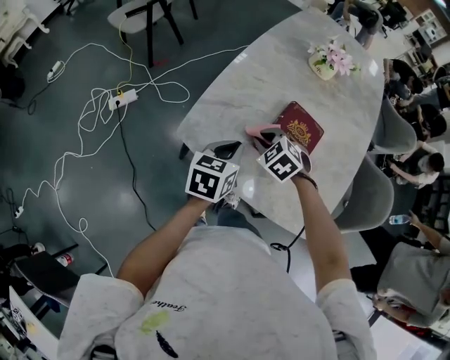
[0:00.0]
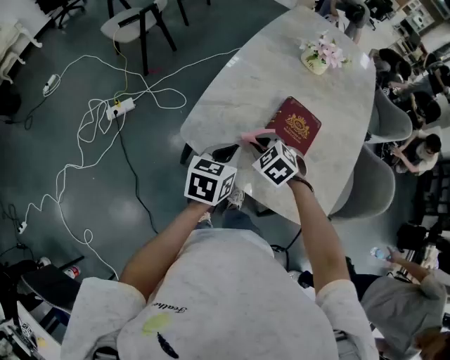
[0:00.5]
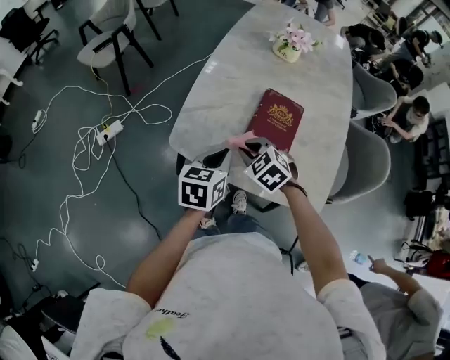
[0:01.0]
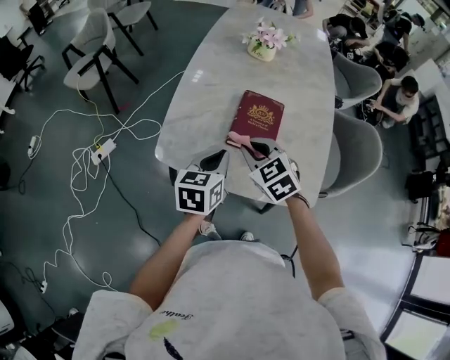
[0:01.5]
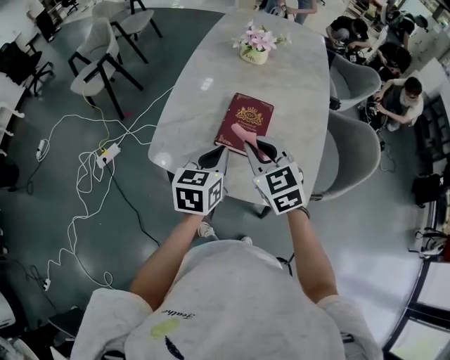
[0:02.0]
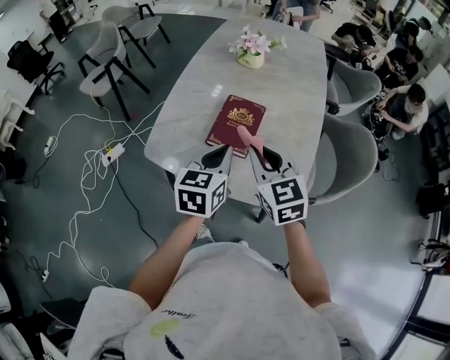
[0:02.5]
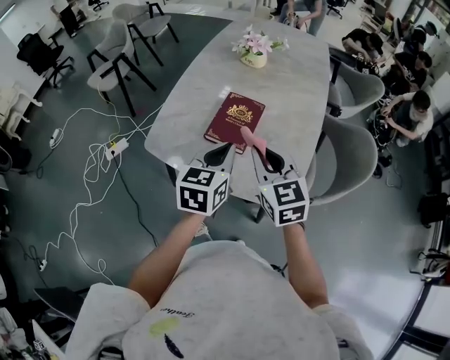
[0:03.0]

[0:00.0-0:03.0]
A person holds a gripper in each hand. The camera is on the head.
0:00.0 to 0:01.5: The right gripper moves upward and backward, approximately 10 cm, and changes its angle by approximately 30 degrees; the left gripper moves roughly 5 cm.
0:01.5 to 0:03.0: The right gripper shifts approximately 20 cm to the right, upward and backward, and turns by about 30 degrees. The left gripper travels to the right and upward by approximately 15 cm.

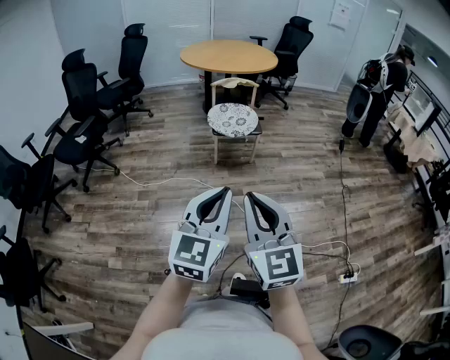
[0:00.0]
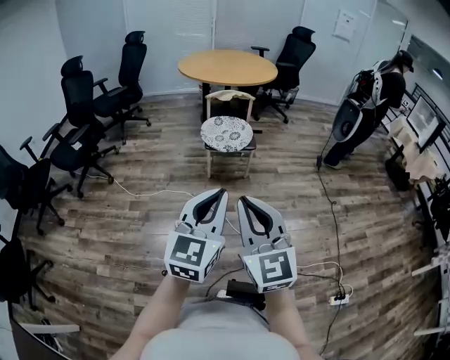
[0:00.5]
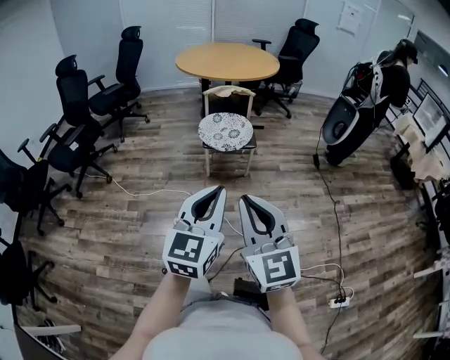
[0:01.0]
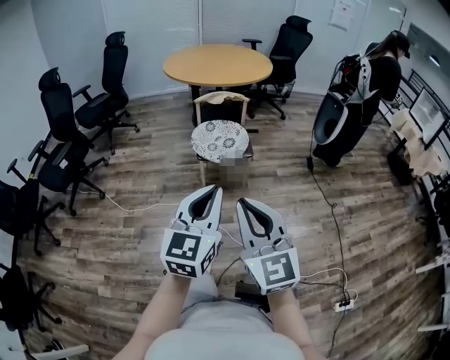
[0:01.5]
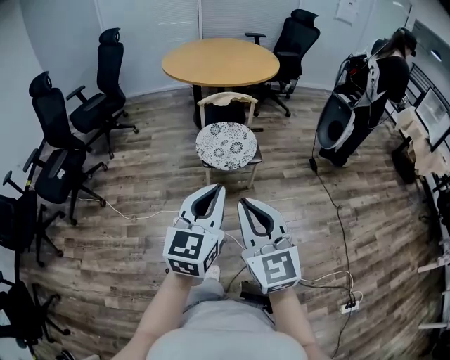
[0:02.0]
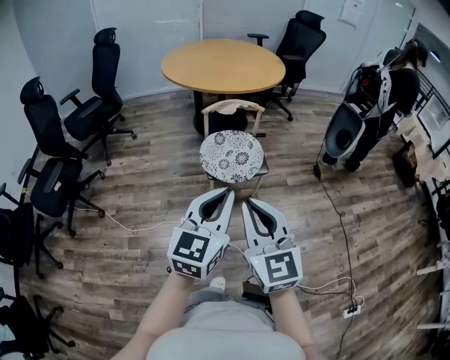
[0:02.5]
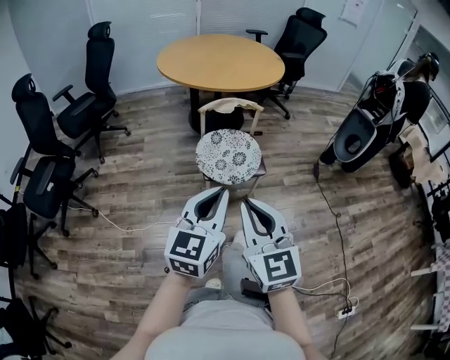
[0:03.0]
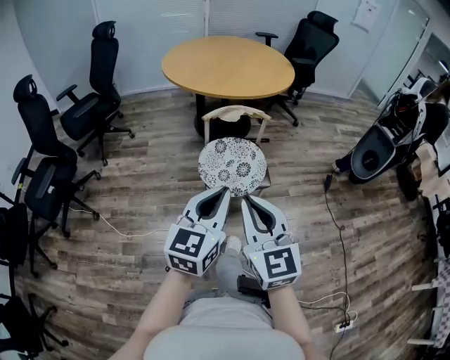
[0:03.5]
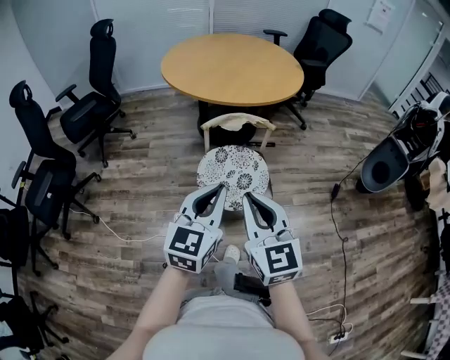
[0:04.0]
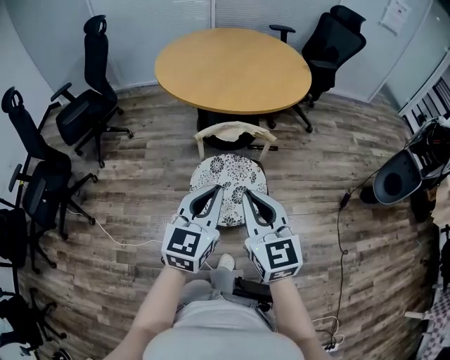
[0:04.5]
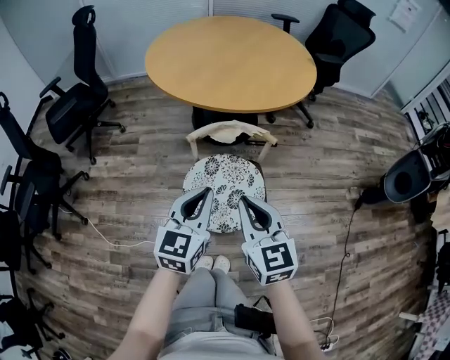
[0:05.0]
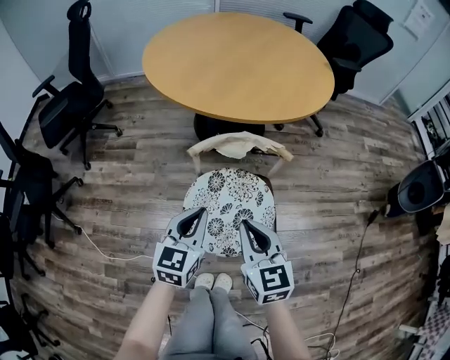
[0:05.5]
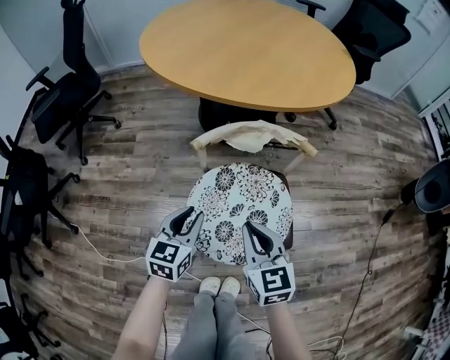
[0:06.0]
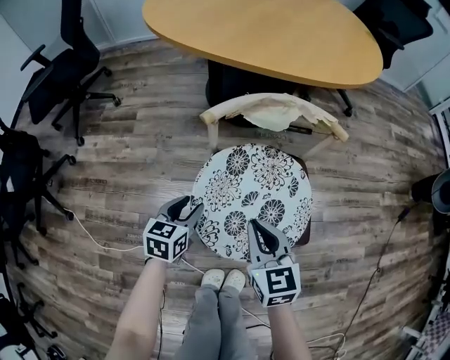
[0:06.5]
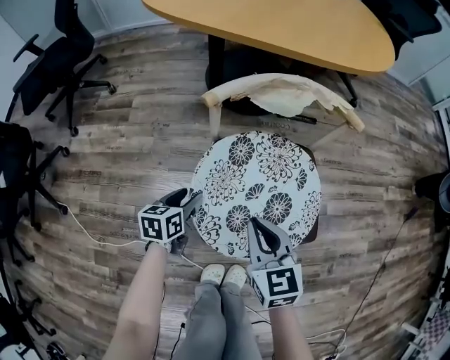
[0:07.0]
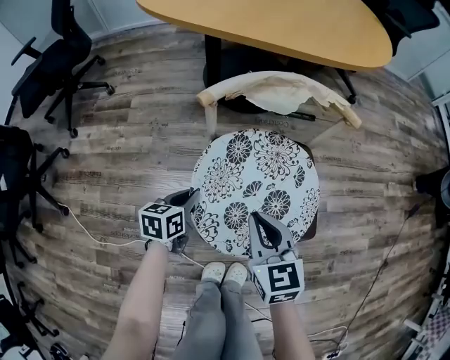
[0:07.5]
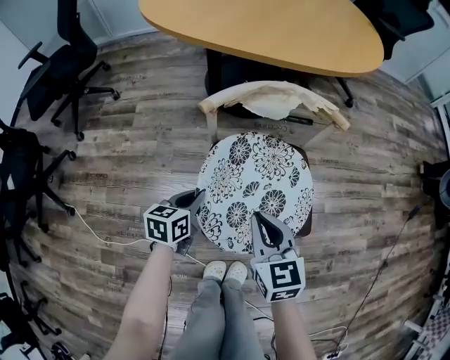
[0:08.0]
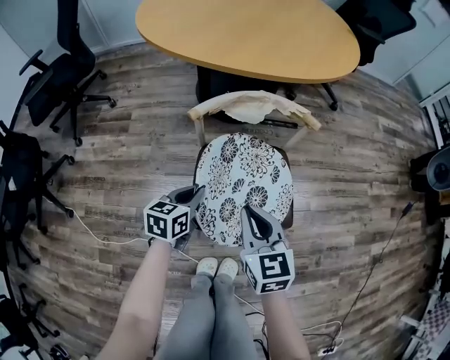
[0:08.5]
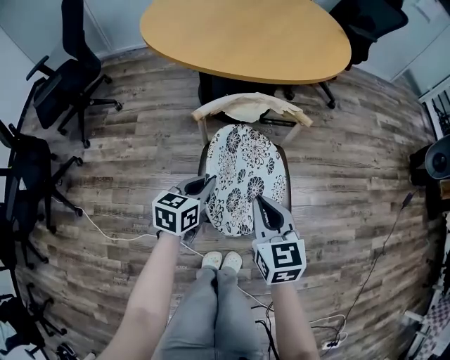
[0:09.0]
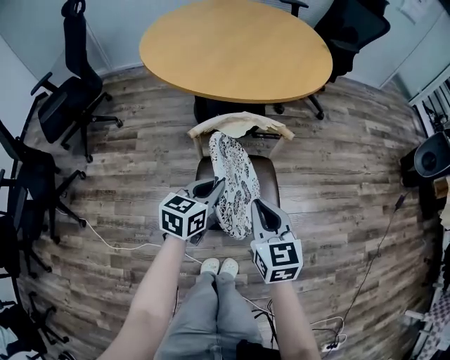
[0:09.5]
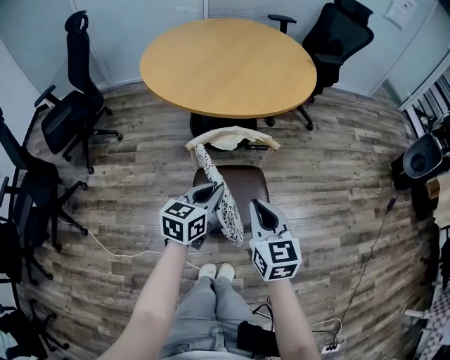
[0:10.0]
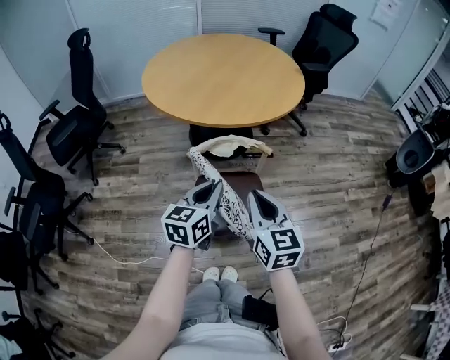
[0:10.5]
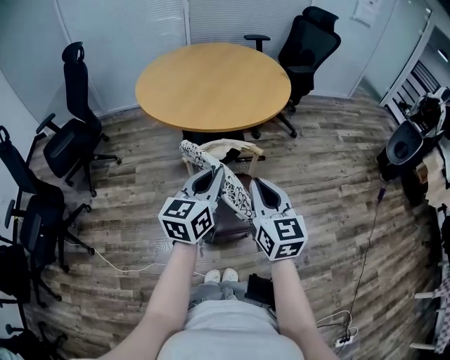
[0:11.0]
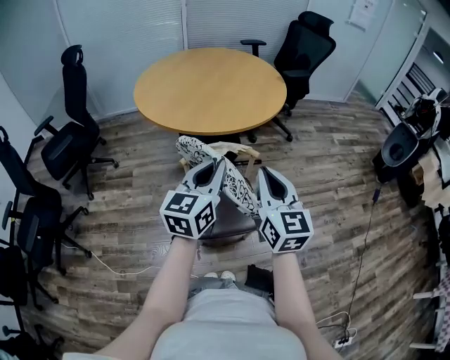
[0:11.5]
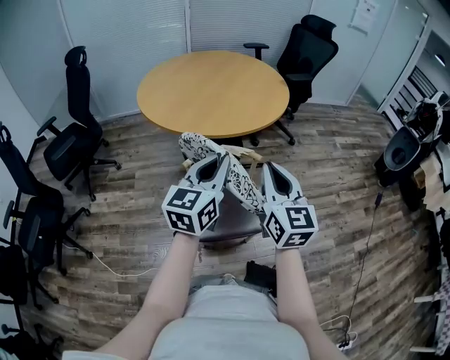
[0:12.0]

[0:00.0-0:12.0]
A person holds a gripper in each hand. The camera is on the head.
0:00.0 to 0:02.0: The grippers both shift forward by some 30 cm.
0:02.0 to 0:04.0: The two grippers go roughly 25 cm forward.
0:04.0 to 0:06.0: The two grippers go roughly 35 cm downward and forward. The right gripper changes its angle by about 20 degrees, while the left gripper swivels approximately 20 degrees.
0:06.0 to 0:08.0: The left gripper goes roughly 15 cm downward, rotates roughly 20 degrees, and opens, then closes once more. The right gripper is displaced downward by about 5 cm.
0:08.0 to 0:10.0: The right gripper shifts about 20 cm upward. Meanwhile the left gripper travels upward and to the right by about 30 cm, and rotates about 20 degrees.
0:10.0 to 0:12.0: Both grippers travel together upward, roughly 20 cm. The right gripper turns by approximately 20 degrees. The left gripper swivels approximately 20 degrees.

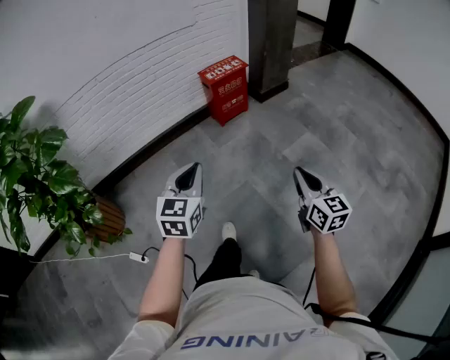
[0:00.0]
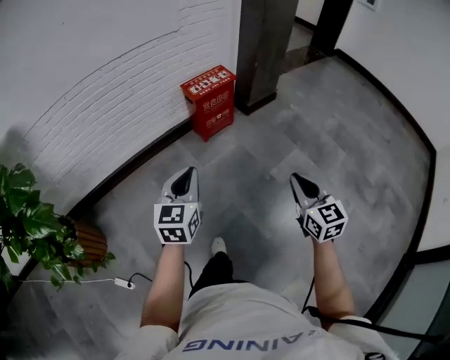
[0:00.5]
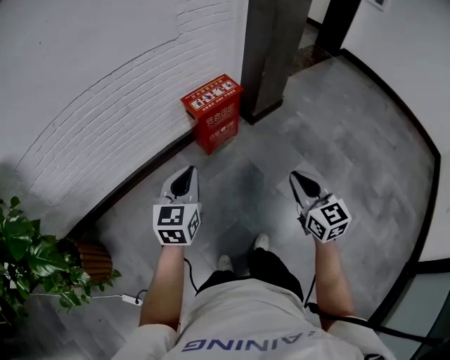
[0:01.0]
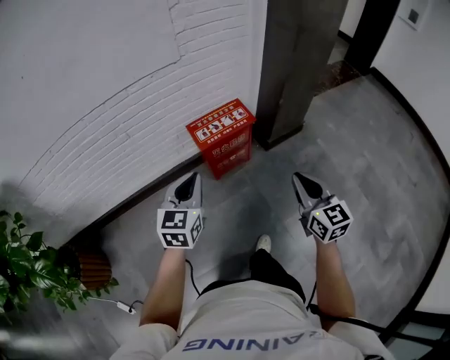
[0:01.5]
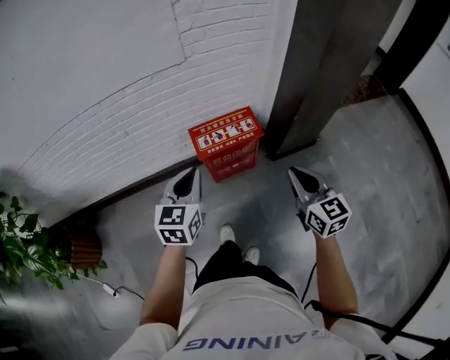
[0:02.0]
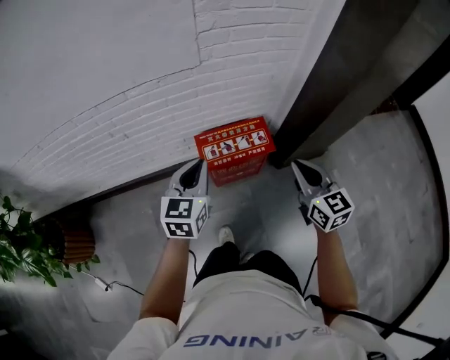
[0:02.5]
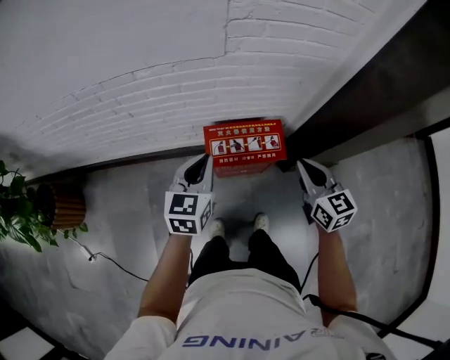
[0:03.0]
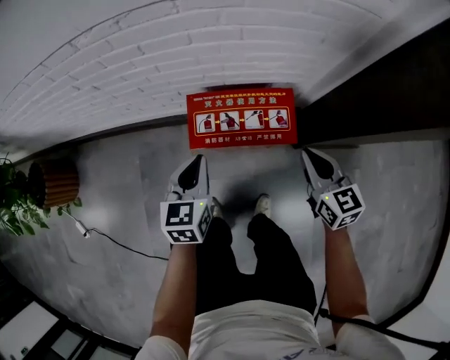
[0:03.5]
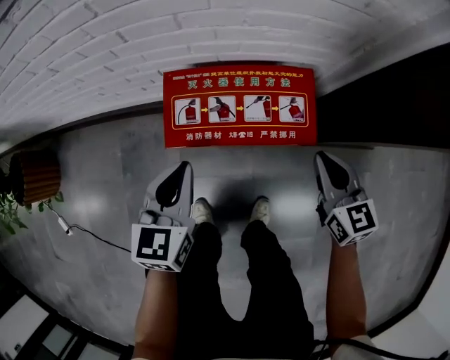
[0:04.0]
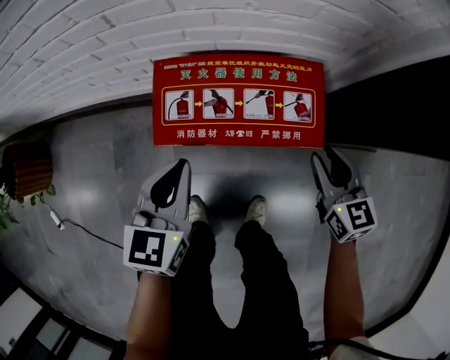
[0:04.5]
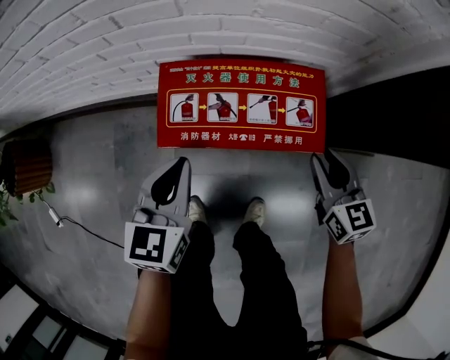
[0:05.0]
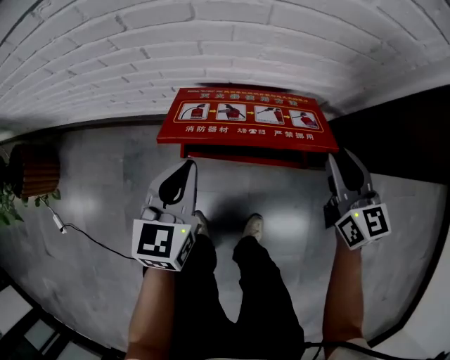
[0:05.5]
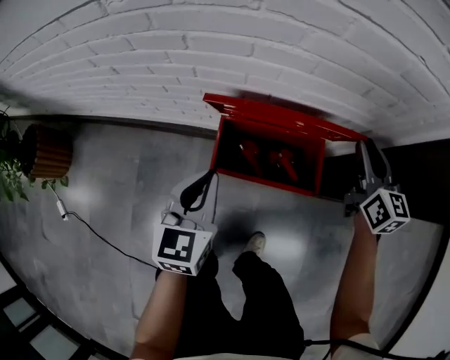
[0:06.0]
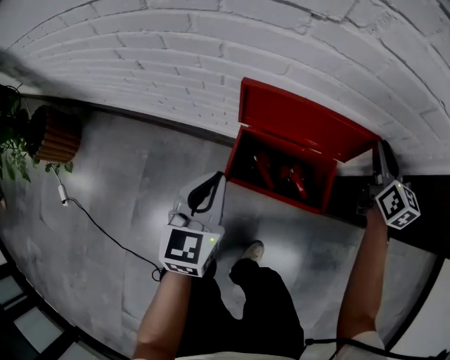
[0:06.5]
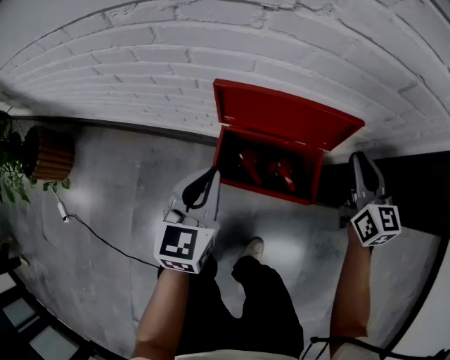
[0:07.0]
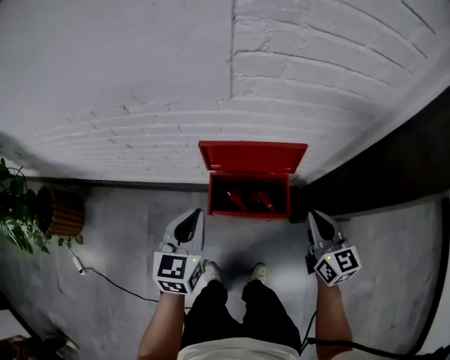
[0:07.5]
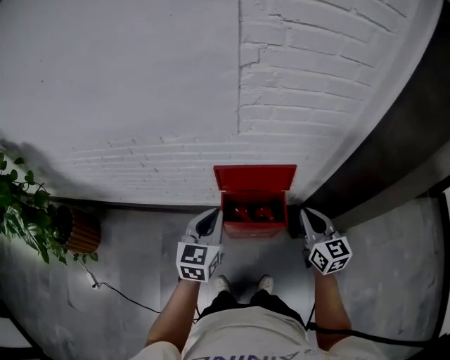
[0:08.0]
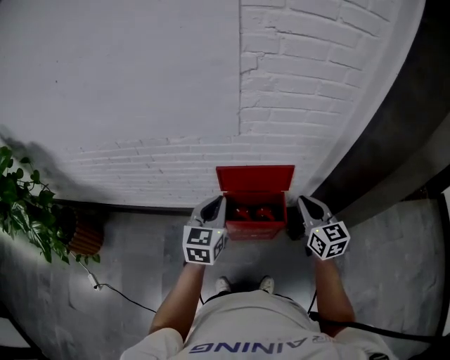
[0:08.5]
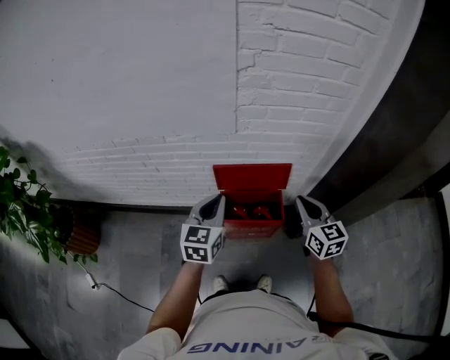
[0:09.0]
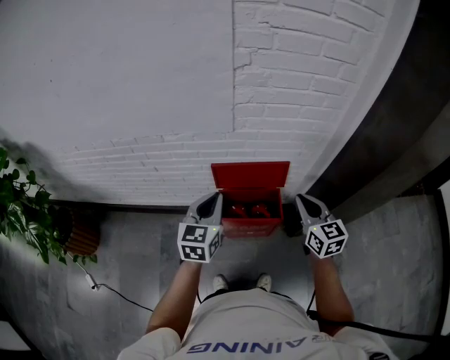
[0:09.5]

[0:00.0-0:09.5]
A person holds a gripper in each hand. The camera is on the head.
0:00.0 to 0:02.0: Both grippers are carried forward, about 70 cm. The right gripper turns by approximately 20 degrees.
0:02.0 to 0:04.0: Both grippers move downward and forward, approximately 40 cm. The left gripper turns by about 20 degrees.
0:04.0 to 0:05.5: The right gripper heads forward and upward, covering approximately 5 cm, and opens.
0:05.5 to 0:07.5: The grippers both shift upward by roughly 20 cm. The right gripper goes forward and returns, some 20 cm each way, and closes up.
0:07.5 to 0:09.5: The two grippers go some 15 cm upward.

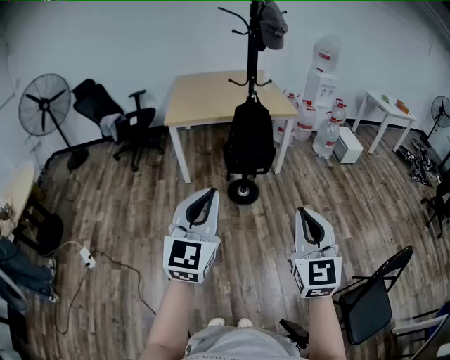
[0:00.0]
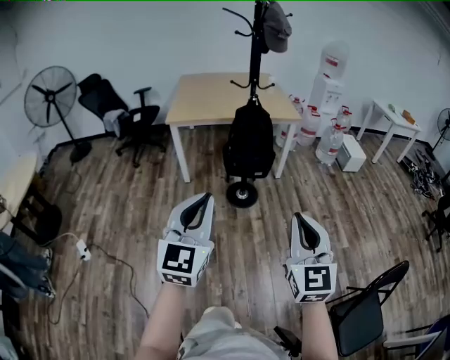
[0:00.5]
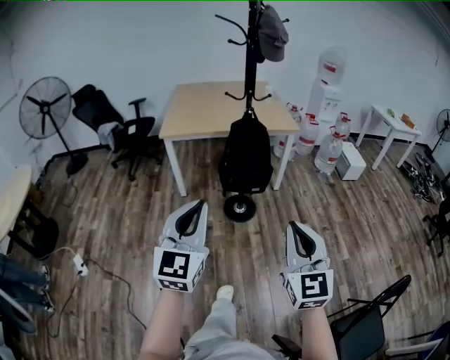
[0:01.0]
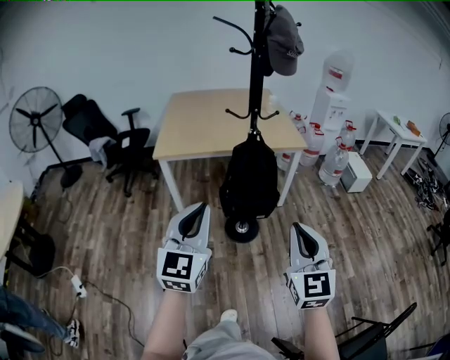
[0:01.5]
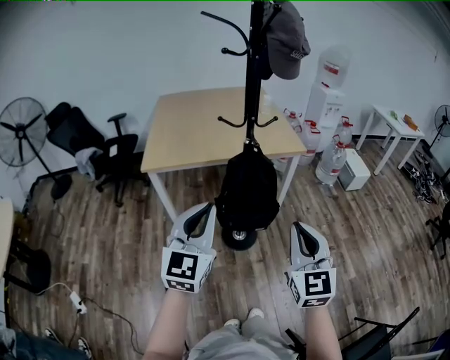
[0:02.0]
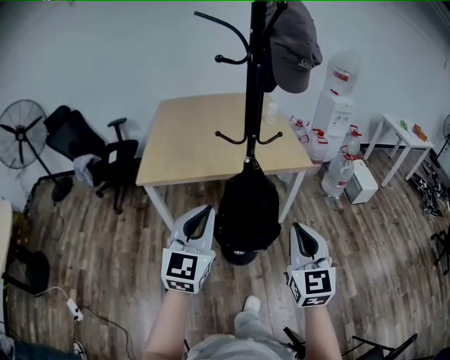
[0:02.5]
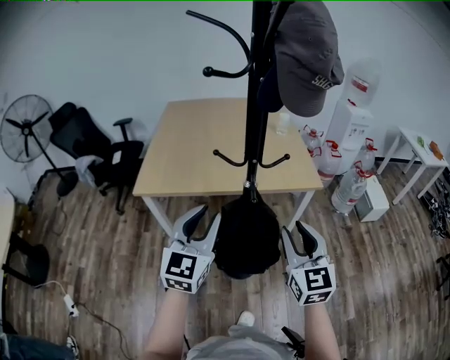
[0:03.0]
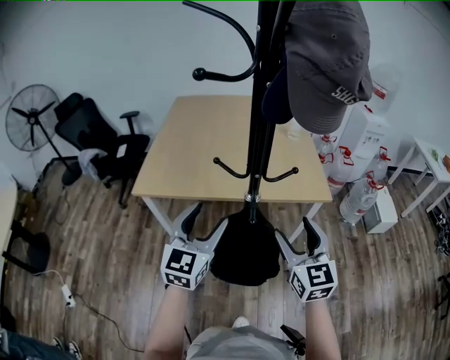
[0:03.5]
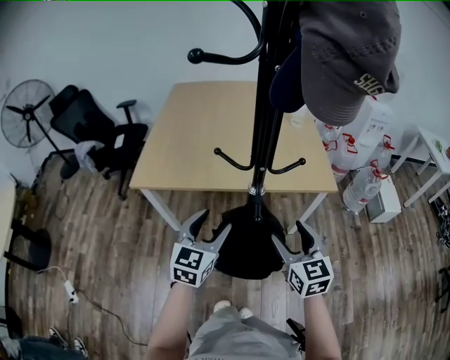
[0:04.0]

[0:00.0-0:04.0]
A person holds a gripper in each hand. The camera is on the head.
0:00.0 to 0:02.0: The grippers both shift forward by roughly 35 cm.
0:02.0 to 0:04.0: The right gripper heads forward, covering roughly 35 cm, turns by roughly 30 degrees, and opens its fingers. The left gripper is displaced forward and downward by some 30 cm, and opens.
